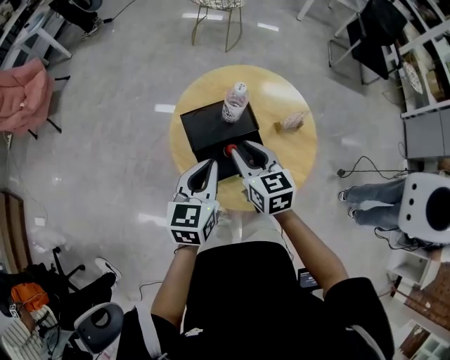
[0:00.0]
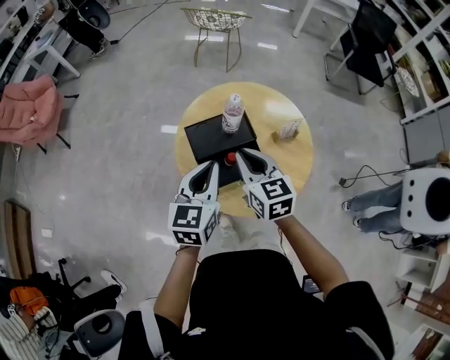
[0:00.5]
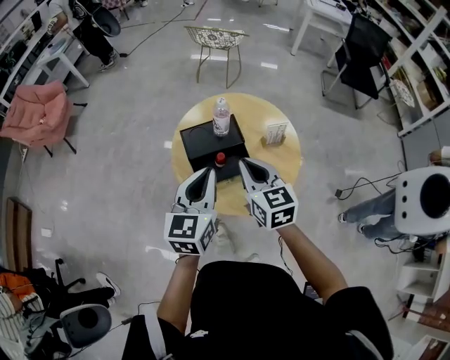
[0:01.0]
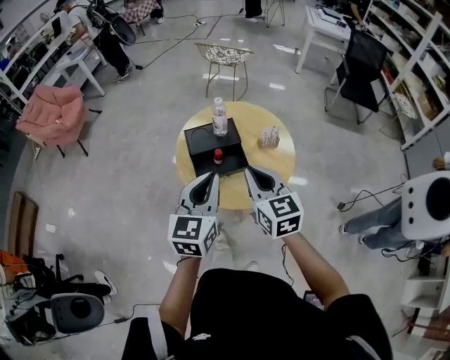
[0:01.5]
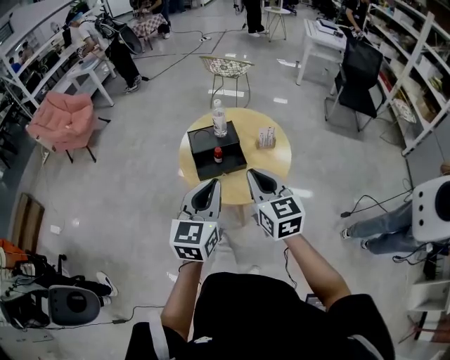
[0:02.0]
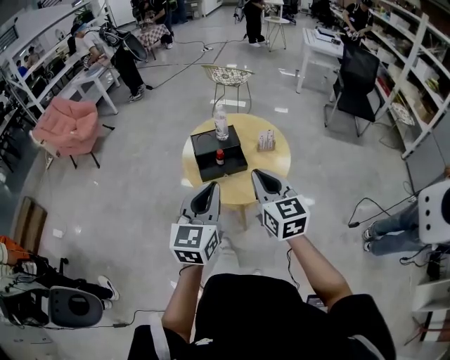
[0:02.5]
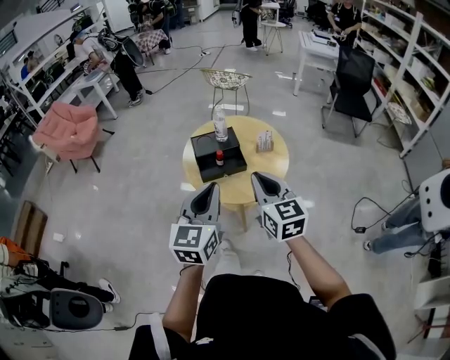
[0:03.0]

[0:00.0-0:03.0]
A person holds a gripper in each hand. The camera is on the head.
0:00.0 to 0:01.5: The two grippers go roughly 30 cm backward, upward and to the right. The right gripper closes.
0:01.5 to 0:03.0: The grippers both shift backward by some 15 cm.

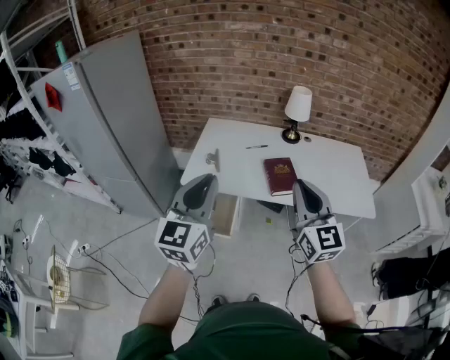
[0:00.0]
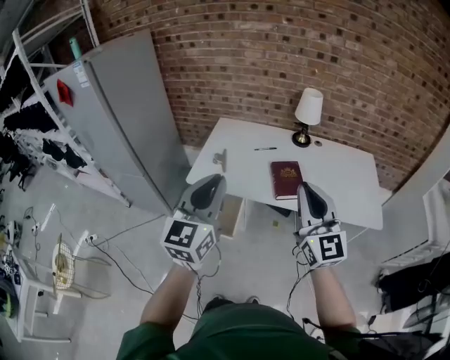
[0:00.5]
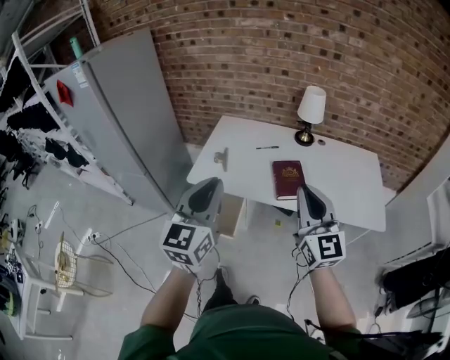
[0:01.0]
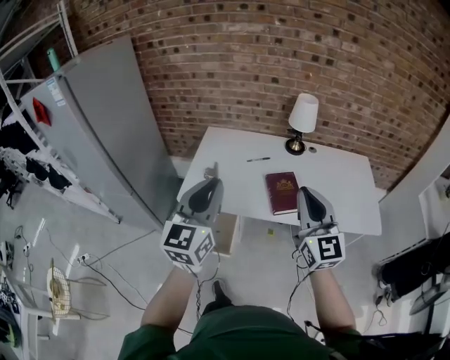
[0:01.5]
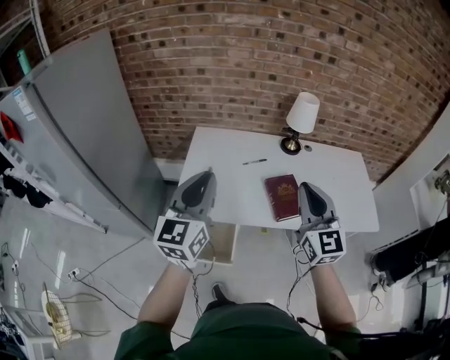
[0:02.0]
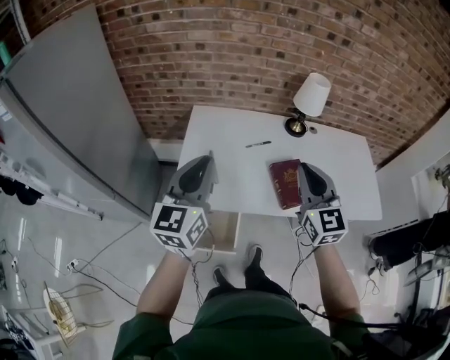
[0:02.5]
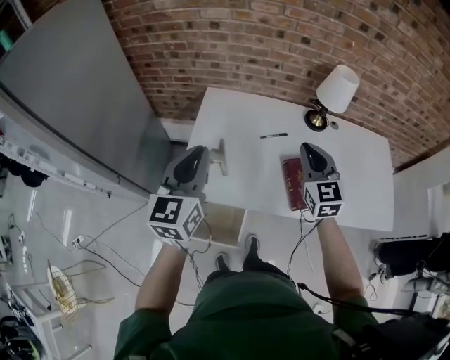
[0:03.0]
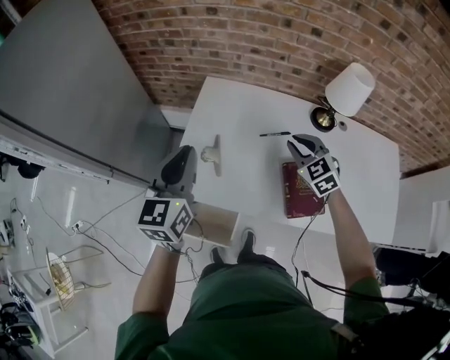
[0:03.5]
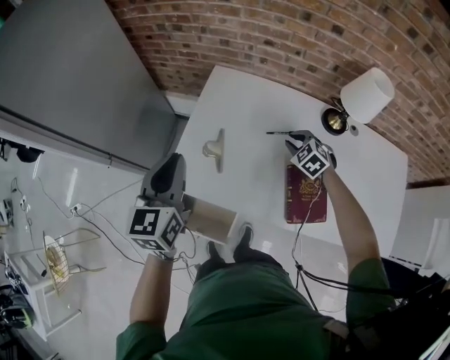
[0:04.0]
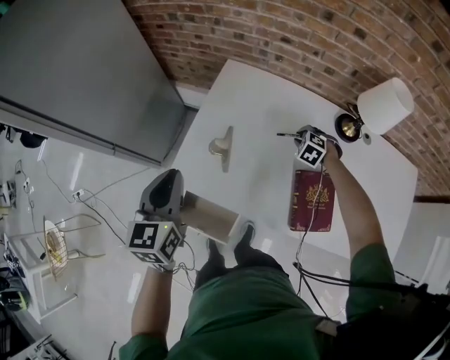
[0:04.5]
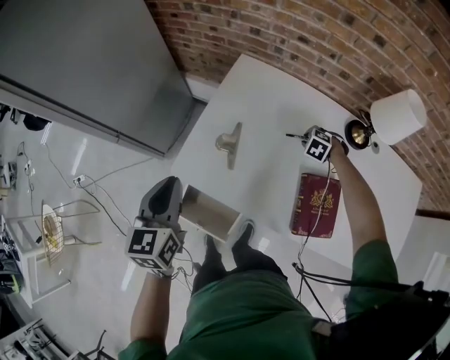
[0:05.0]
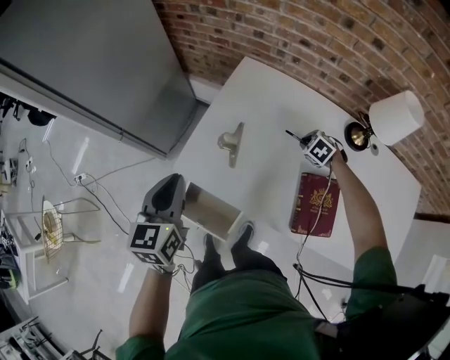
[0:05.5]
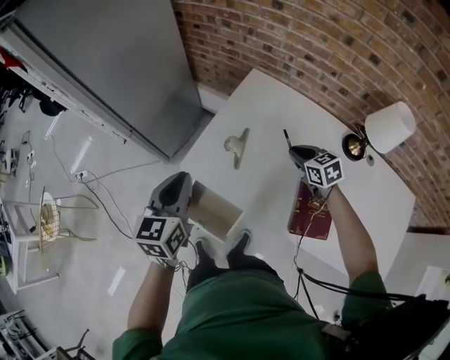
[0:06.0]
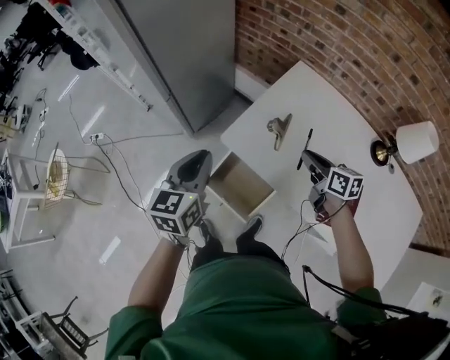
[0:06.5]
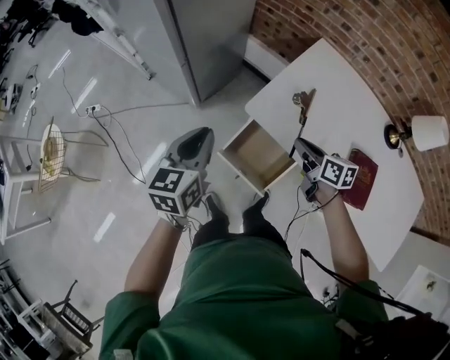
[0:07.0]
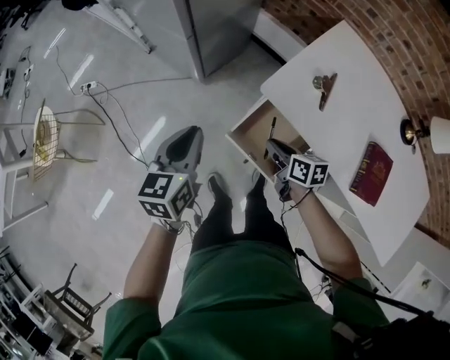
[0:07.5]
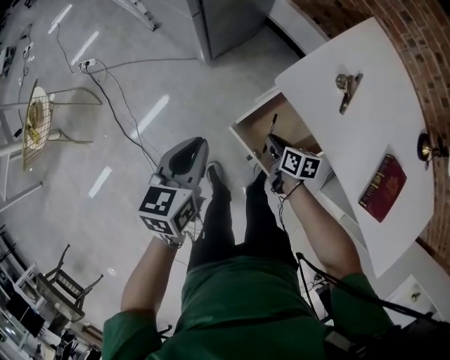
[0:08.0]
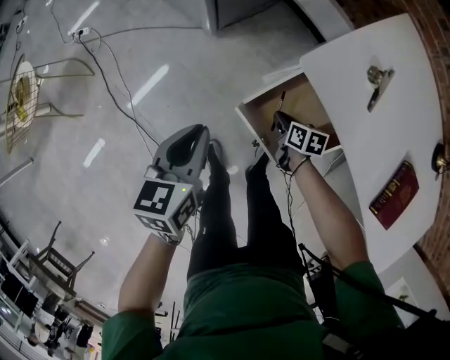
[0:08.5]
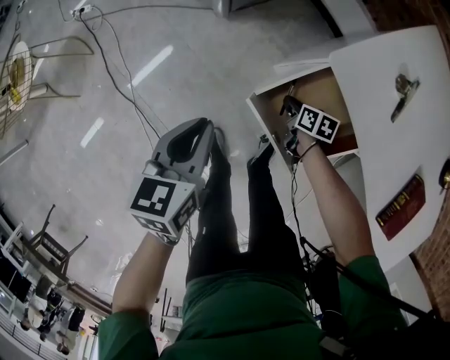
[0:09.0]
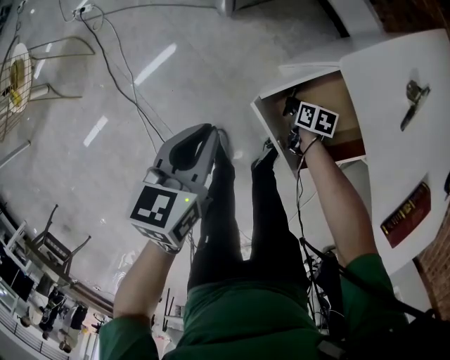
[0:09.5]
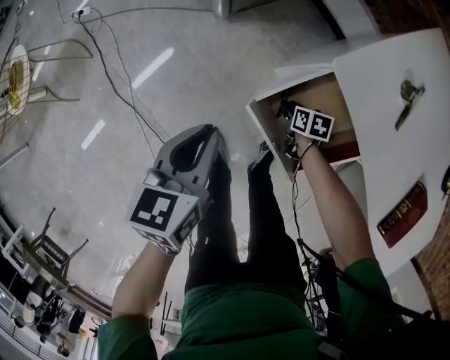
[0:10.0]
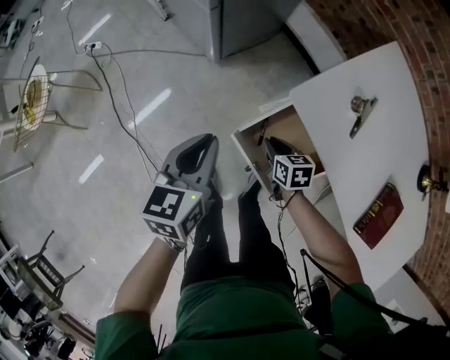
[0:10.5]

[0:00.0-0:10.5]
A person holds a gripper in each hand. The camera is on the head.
0:00.0 to 0:02.0: Both grippers move forward, some 20 cm.
0:02.0 to 0:04.0: The left gripper is displaced forward and downward by about 25 cm, and changes its angle by about 30 degrees. Meanwhile the right gripper moves downward and forward, about 50 cm, and tips its fingers downward by some 60 degrees.
0:04.0 to 0:06.5: The left gripper changes place by some 20 cm, while the right gripper shifts by some 20 cm, and changes its angle by about 60 degrees.
0:06.5 to 0:08.5: The right gripper heads downward and to the left, covering some 50 cm, and turns by some 30 degrees; the left gripper shifts approximately 30 cm downward and to the left, and changes its angle by approximately 20 degrees.
0:08.5 to 0:10.5: The left gripper shifts by about 5 cm, while the right gripper shifts roughly 10 cm upward, and rotates about 20 degrees.

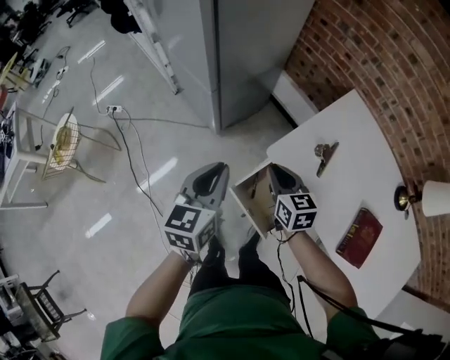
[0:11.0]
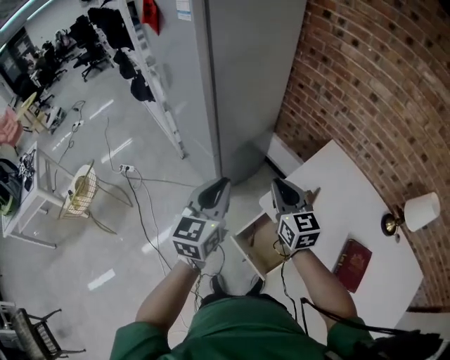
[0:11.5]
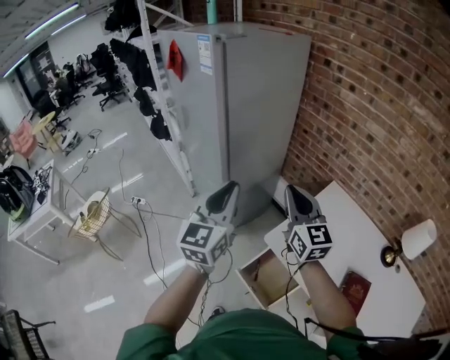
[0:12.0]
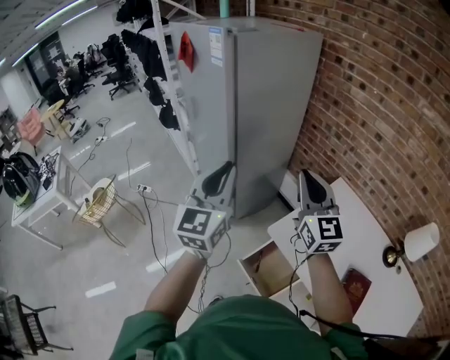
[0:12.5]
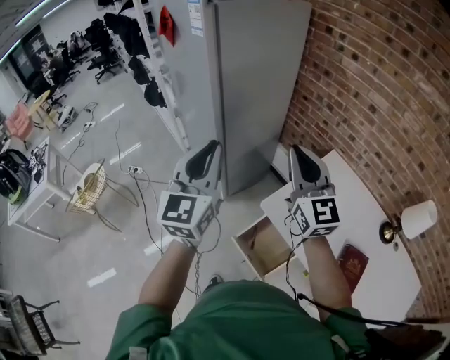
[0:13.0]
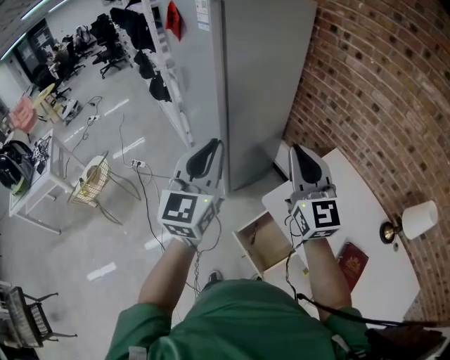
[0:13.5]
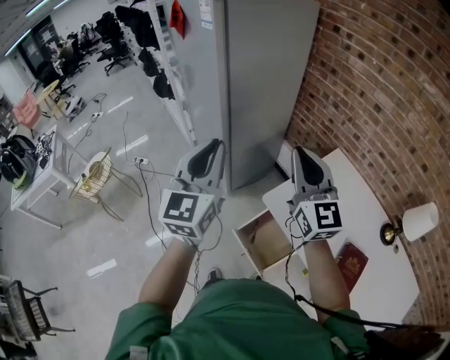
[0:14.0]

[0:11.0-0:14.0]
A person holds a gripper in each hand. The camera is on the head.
0:11.0 to 0:12.5: The grippers both shift upward by about 35 cm. The right gripper tilts its fingers roughly 40 degrees upward. Meanwhile the left gripper changes its angle by some 40 degrees.
0:12.5 to 0:14.0: The grippers move only a little.

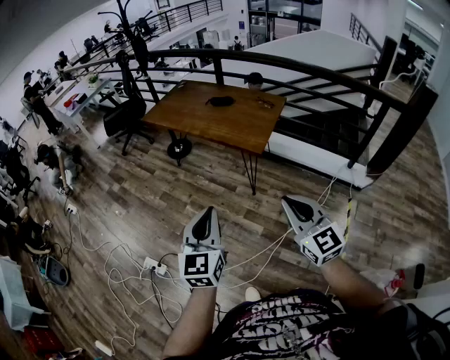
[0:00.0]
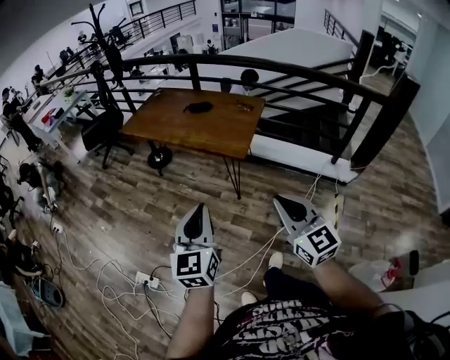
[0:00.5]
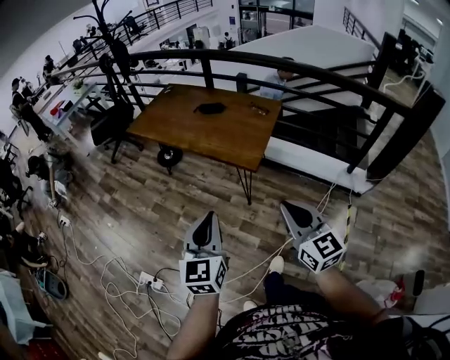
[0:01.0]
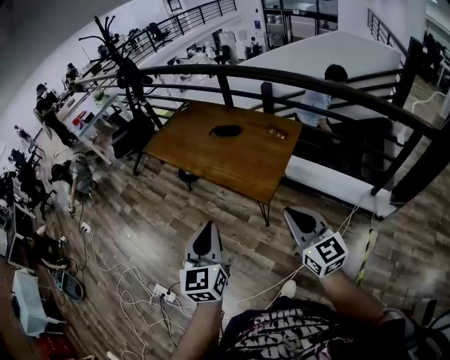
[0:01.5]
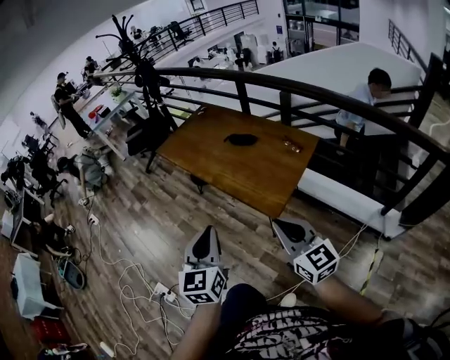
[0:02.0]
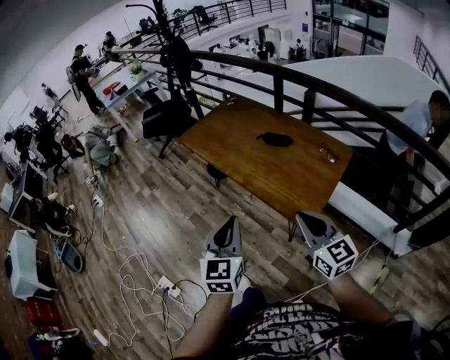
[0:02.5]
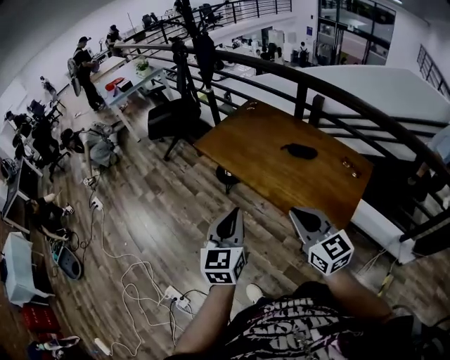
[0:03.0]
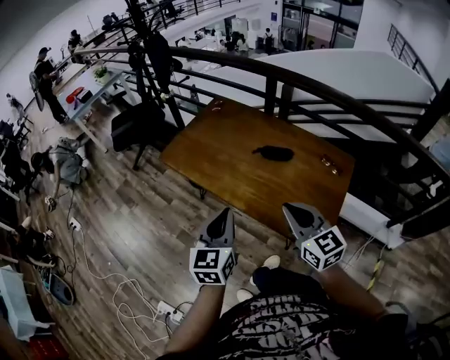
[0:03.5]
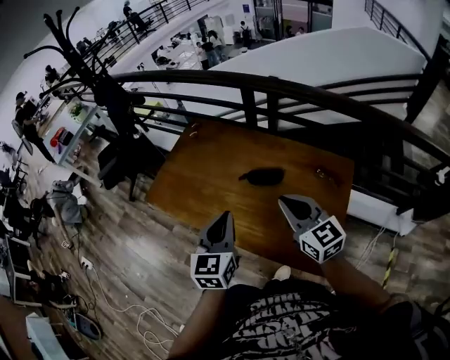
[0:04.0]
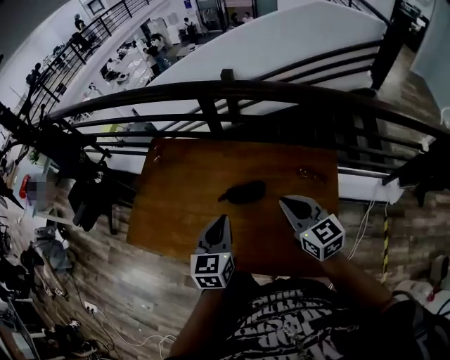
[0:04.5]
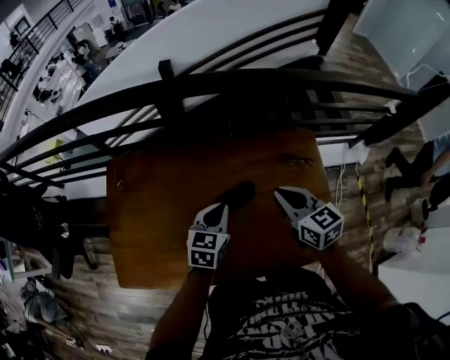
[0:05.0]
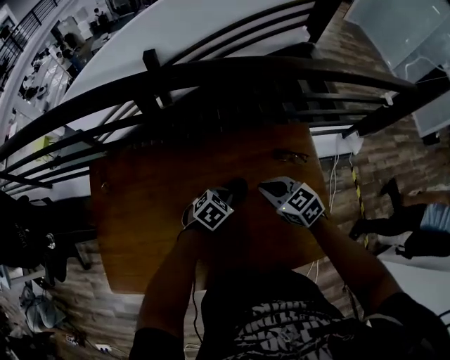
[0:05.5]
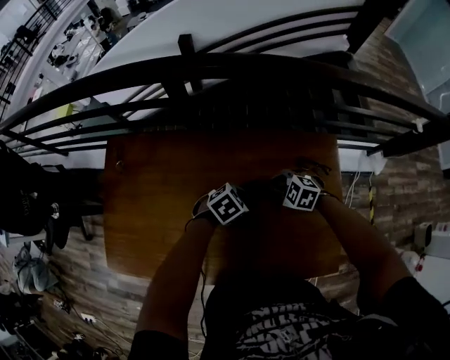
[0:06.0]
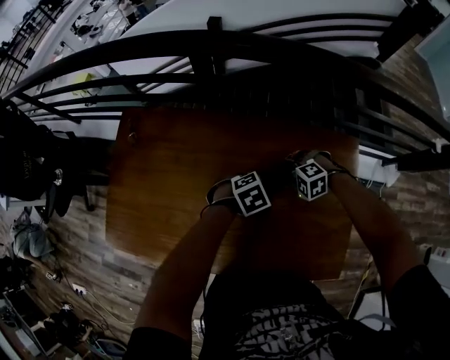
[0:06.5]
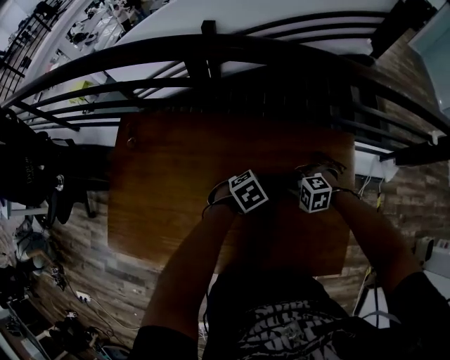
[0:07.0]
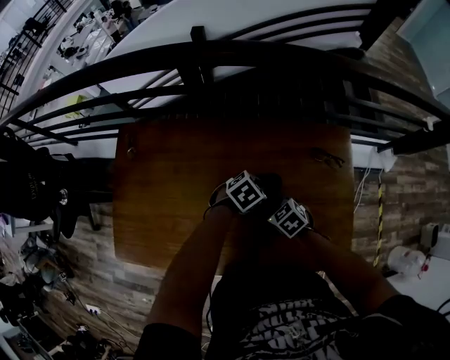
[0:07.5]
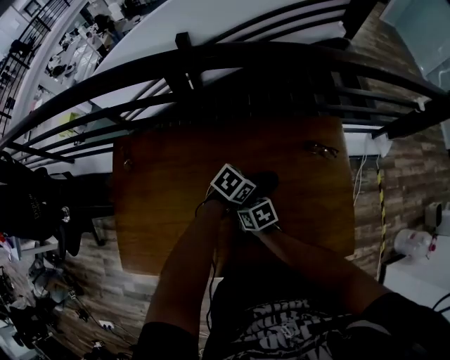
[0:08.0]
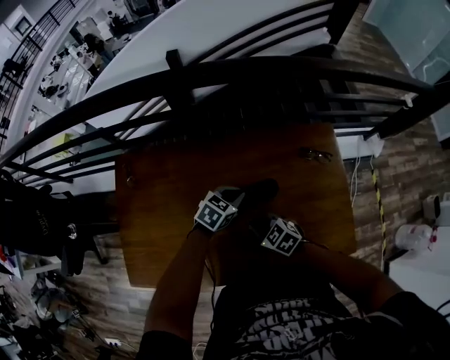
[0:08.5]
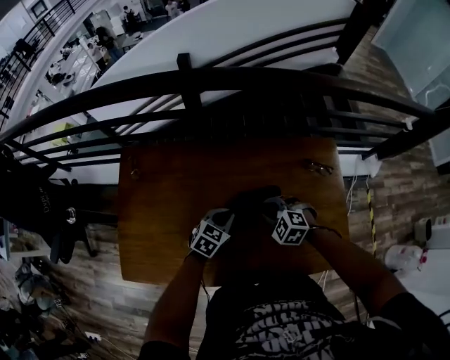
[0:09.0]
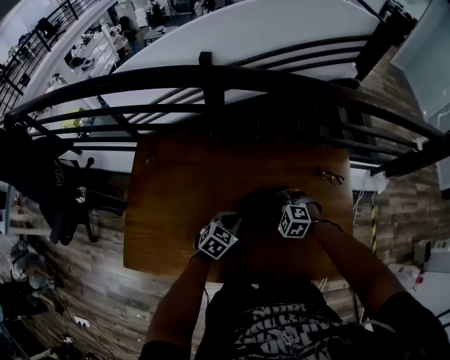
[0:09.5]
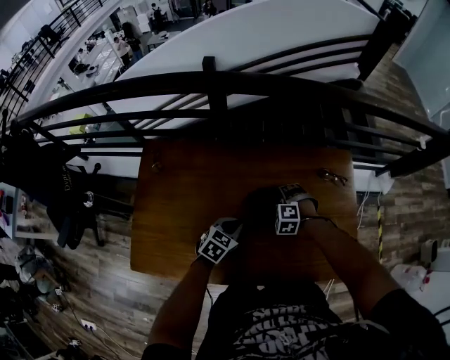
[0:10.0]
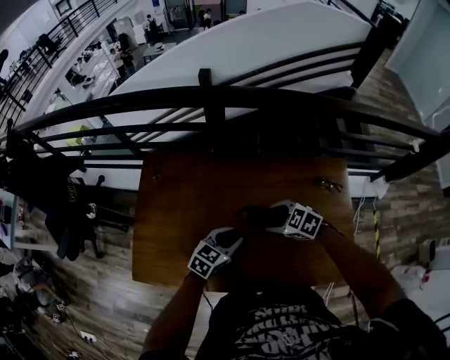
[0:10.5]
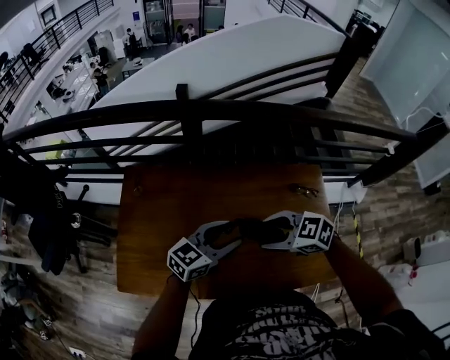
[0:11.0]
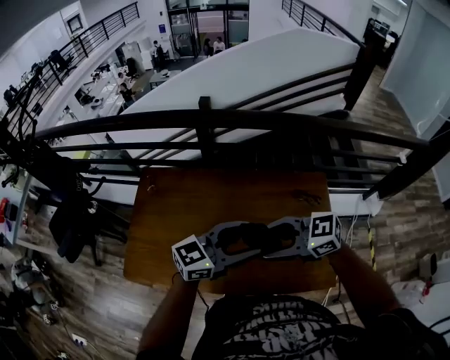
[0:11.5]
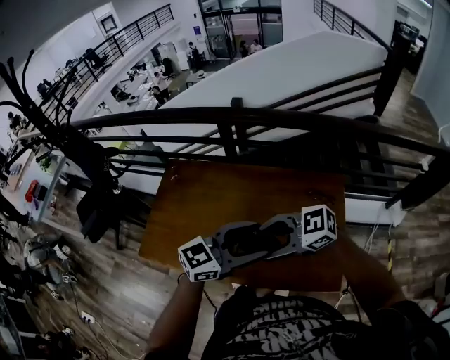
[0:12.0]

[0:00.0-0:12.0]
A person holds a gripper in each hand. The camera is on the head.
0:00.0 to 0:02.0: Both grippers travel together forward, roughly 30 cm. The right gripper changes its angle by roughly 20 degrees.
0:02.0 to 0:04.0: The pair of grippers is taken forward, approximately 50 cm.
0:04.0 to 0:06.0: The two grippers go approximately 35 cm downward. The left gripper points its fingers roughly 40 degrees further downward; the right gripper angles its fingers downward, by some 50 degrees.
0:06.0 to 0:08.0: The right gripper changes place by about 20 cm, and rolls clockwise, seen from behind, by approximately 60 degrees.
0:08.0 to 0:10.0: The right gripper changes place by approximately 10 cm, rotates around the line of its fingers by about 80 degrees, counterclockwise from behind, and opens up; the left gripper moves about 15 cm, and changes its angle by roughly 30 degrees.
0:10.0 to 0:12.0: Both grippers travel together upward, some 35 cm. The left gripper angles its fingers upward, by approximately 40 degrees, and opens; the right gripper points its fingers approximately 50 degrees further upward.
